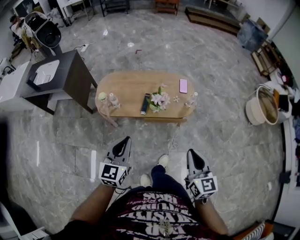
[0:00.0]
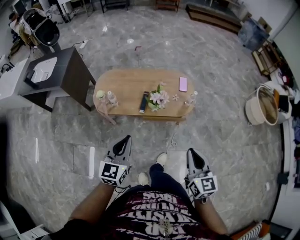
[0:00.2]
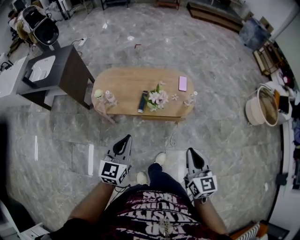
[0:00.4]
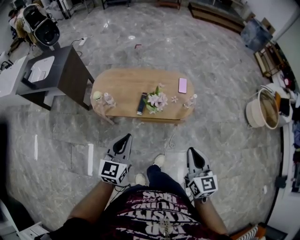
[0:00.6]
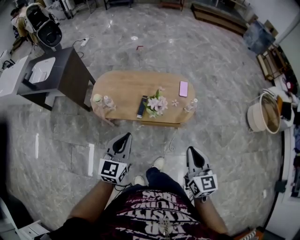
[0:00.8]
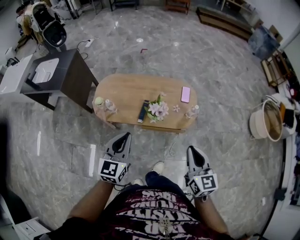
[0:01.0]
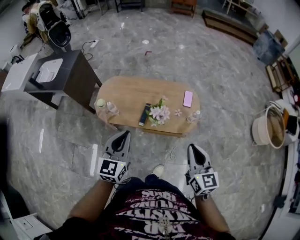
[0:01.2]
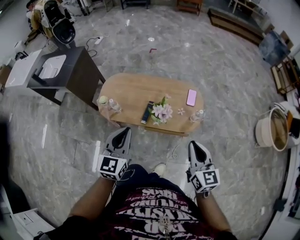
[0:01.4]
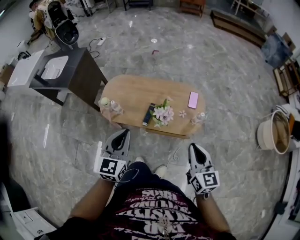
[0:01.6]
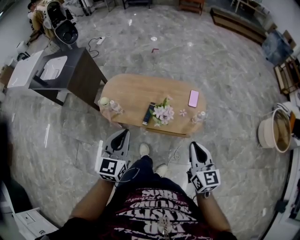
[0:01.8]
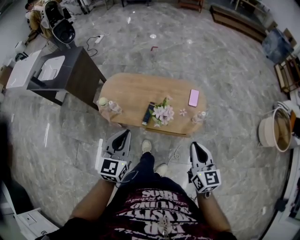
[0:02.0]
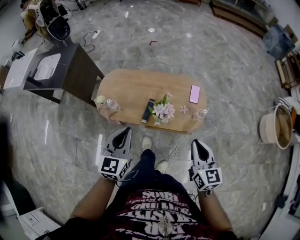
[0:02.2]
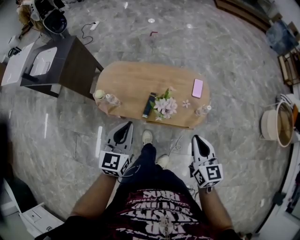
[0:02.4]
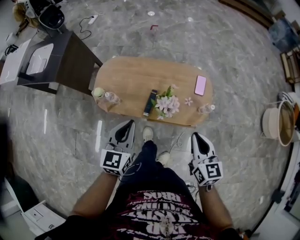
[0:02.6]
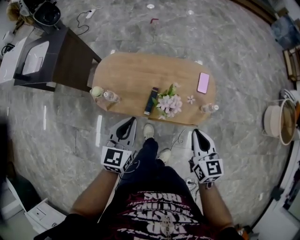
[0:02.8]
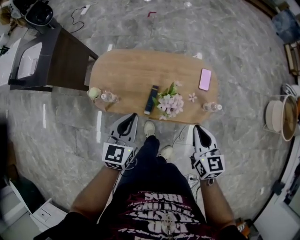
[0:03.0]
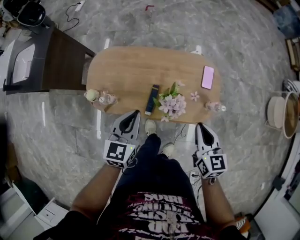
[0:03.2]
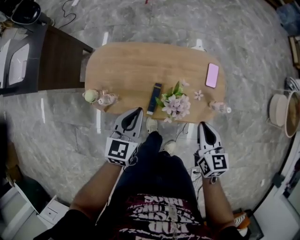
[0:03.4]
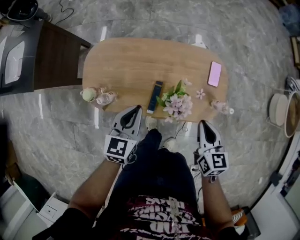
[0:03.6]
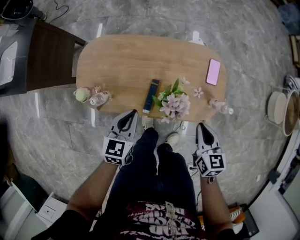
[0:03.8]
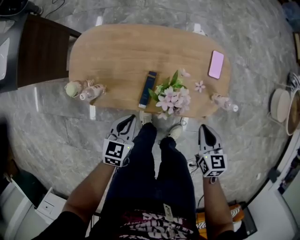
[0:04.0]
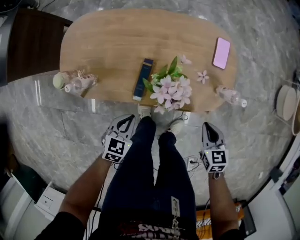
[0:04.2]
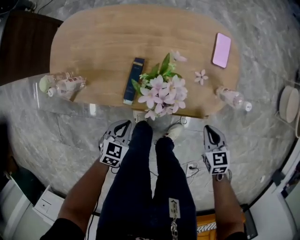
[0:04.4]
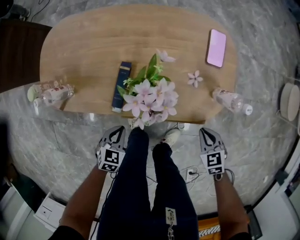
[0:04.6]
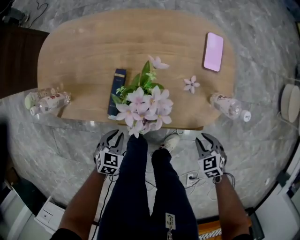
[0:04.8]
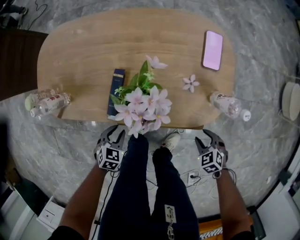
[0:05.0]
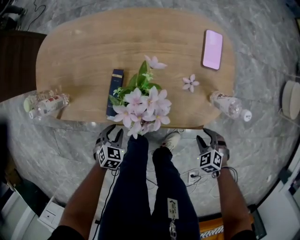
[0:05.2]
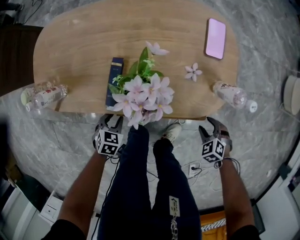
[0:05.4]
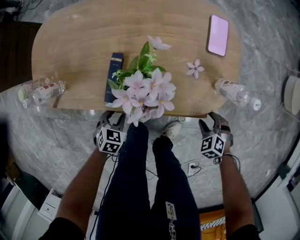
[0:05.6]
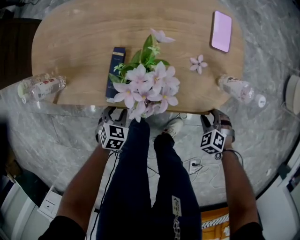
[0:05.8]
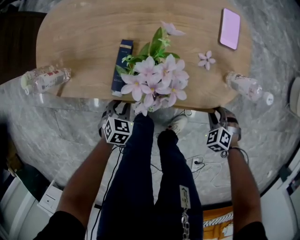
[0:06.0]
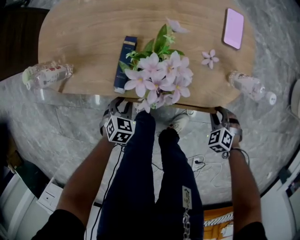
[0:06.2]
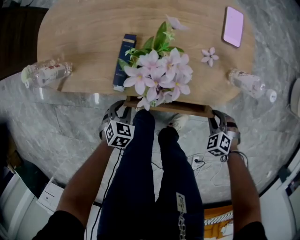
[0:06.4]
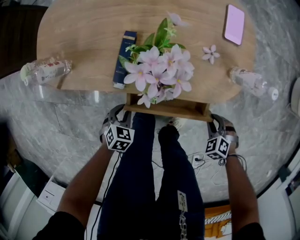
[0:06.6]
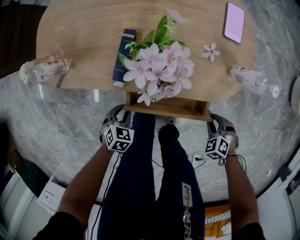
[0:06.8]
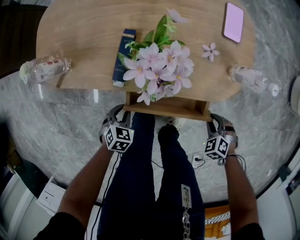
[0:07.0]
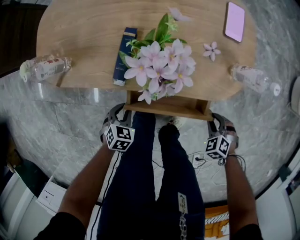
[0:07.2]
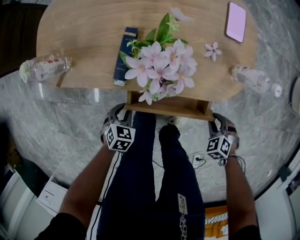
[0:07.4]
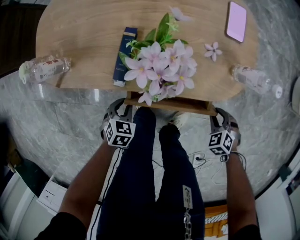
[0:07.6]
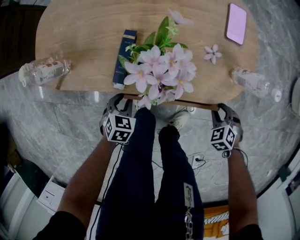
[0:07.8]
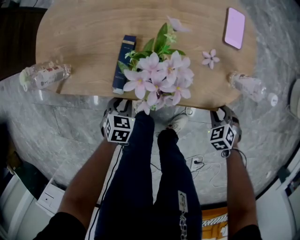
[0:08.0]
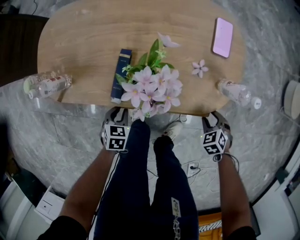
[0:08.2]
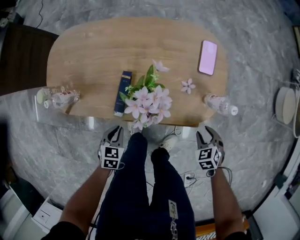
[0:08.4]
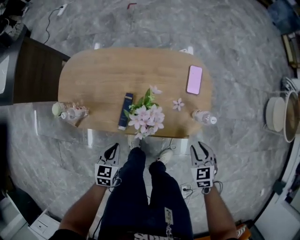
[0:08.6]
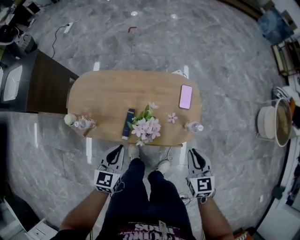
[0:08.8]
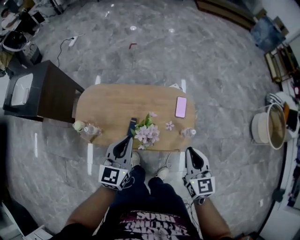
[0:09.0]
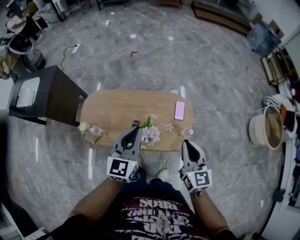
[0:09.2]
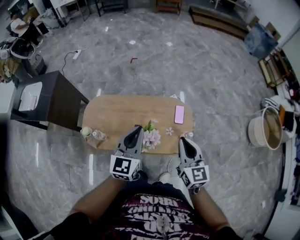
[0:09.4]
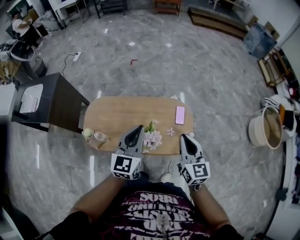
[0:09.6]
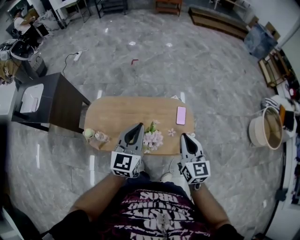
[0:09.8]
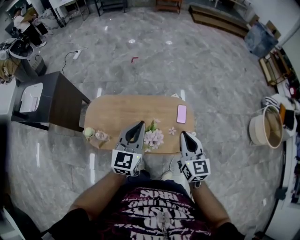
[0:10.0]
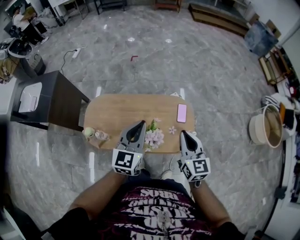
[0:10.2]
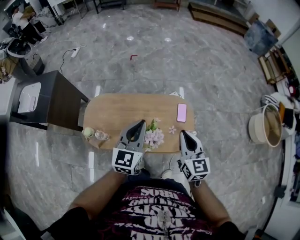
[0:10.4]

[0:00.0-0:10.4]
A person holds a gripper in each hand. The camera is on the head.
0:00.0 to 0:01.4: The two grippers go some 15 cm forward.
0:01.4 to 0:03.0: Both grippers move forward and downward, about 20 cm.
0:03.0 to 0:04.4: Both grippers move downward, approximately 35 cm. The left gripper swivels approximately 30 degrees; the right gripper turns by some 30 degrees.
0:04.4 to 0:06.0: Both grippers move downward, approximately 15 cm. The left gripper opens up; the right gripper rolls counterclockwise, seen from behind, by roughly 40 degrees, and opens up.
0:06.0 to 0:07.4: The right gripper changes place by approximately 5 cm. Meanwhile the left gripper changes place by about 5 cm.
0:07.4 to 0:09.0: The two grippers go some 50 cm upward. The left gripper points its fingers about 50 degrees further upward. Meanwhile the right gripper angles its fingers upward, by about 50 degrees.
0:09.0 to 0:10.4: The right gripper is displaced to the left, upward and forward by some 10 cm; the left gripper is displaced upward and forward by some 10 cm.

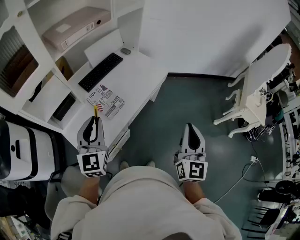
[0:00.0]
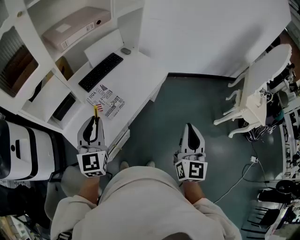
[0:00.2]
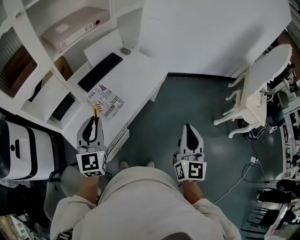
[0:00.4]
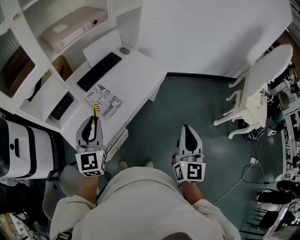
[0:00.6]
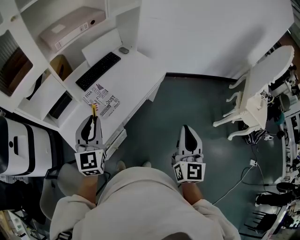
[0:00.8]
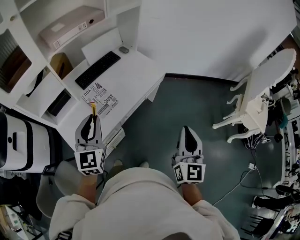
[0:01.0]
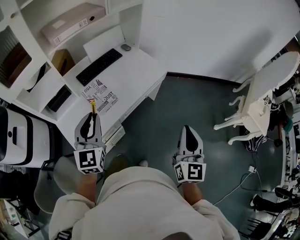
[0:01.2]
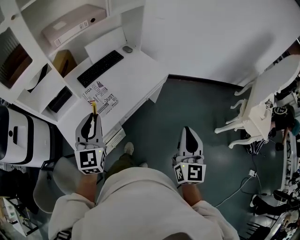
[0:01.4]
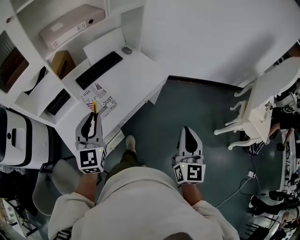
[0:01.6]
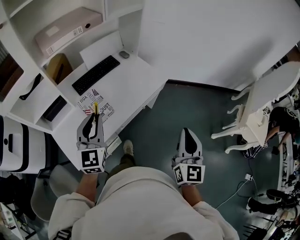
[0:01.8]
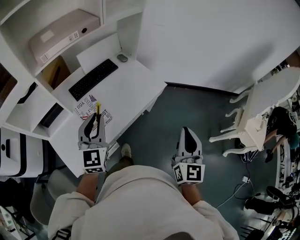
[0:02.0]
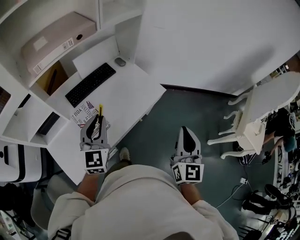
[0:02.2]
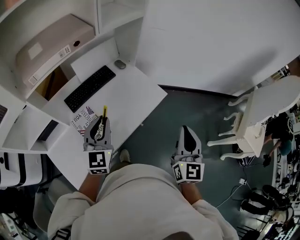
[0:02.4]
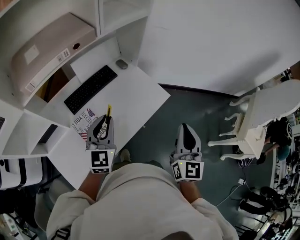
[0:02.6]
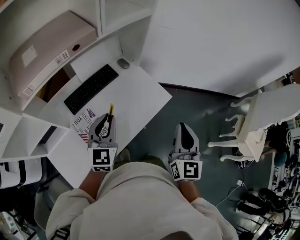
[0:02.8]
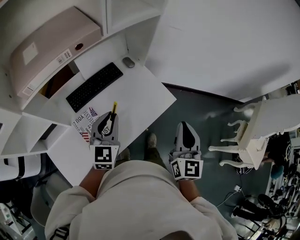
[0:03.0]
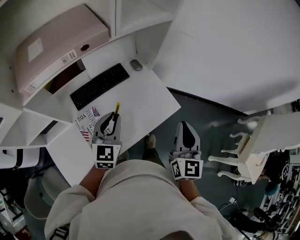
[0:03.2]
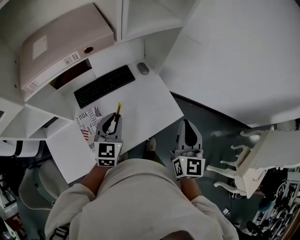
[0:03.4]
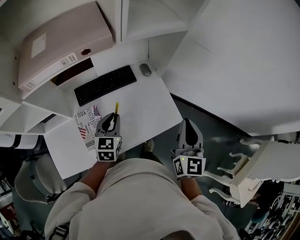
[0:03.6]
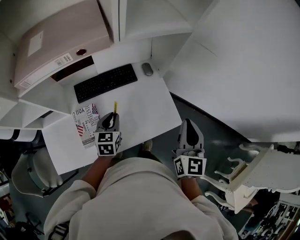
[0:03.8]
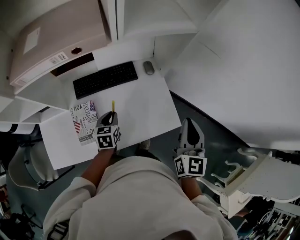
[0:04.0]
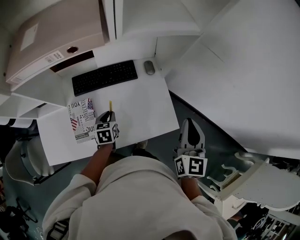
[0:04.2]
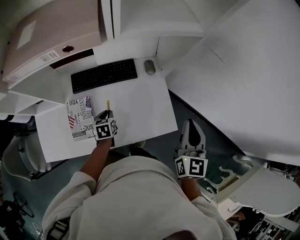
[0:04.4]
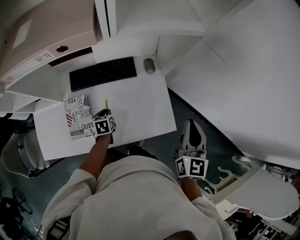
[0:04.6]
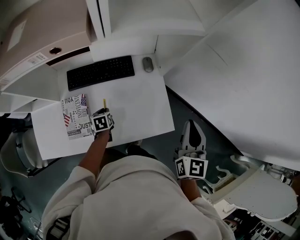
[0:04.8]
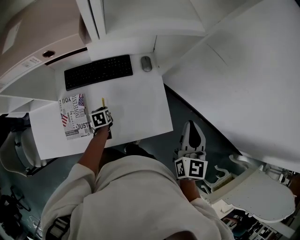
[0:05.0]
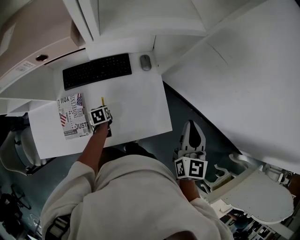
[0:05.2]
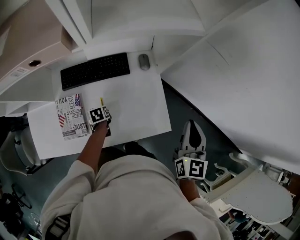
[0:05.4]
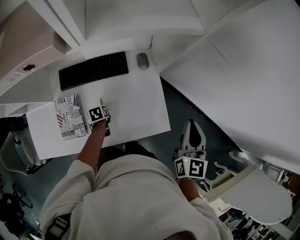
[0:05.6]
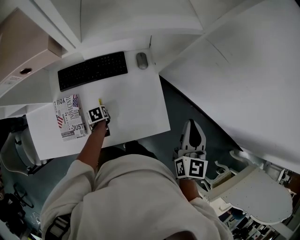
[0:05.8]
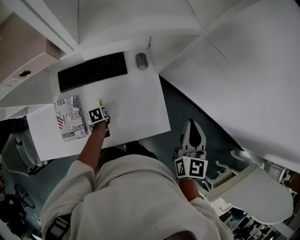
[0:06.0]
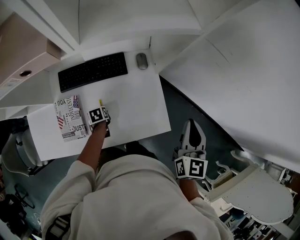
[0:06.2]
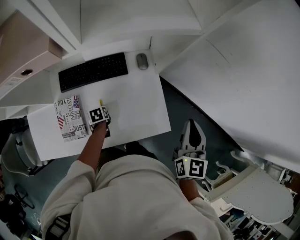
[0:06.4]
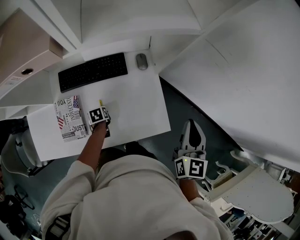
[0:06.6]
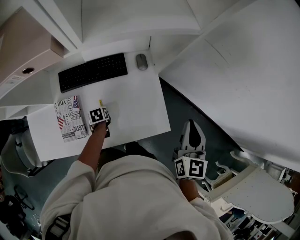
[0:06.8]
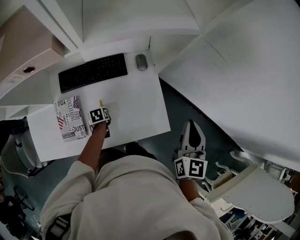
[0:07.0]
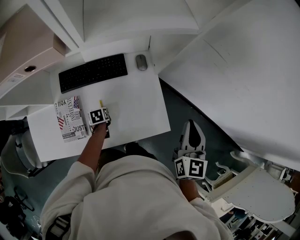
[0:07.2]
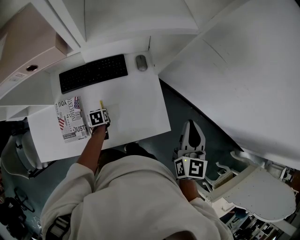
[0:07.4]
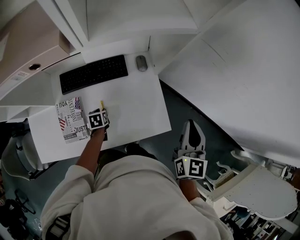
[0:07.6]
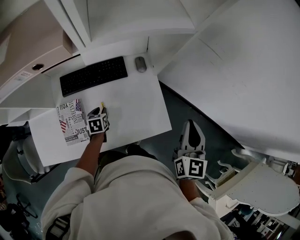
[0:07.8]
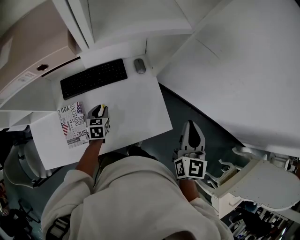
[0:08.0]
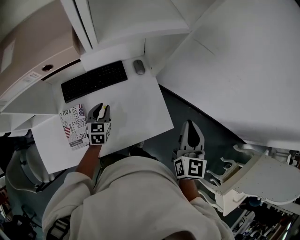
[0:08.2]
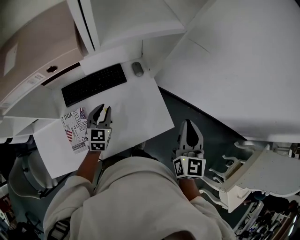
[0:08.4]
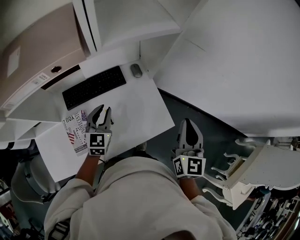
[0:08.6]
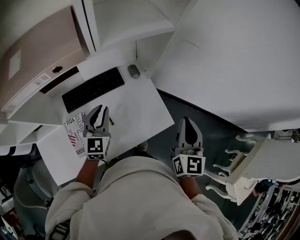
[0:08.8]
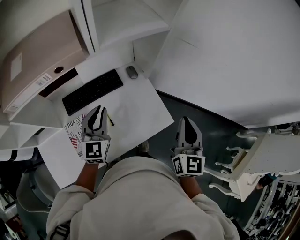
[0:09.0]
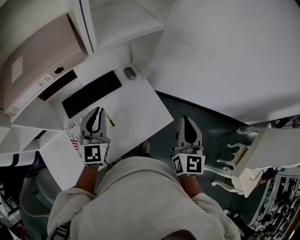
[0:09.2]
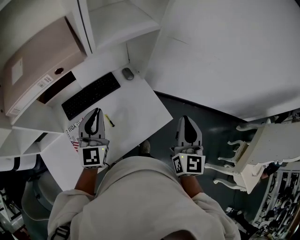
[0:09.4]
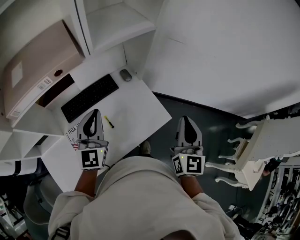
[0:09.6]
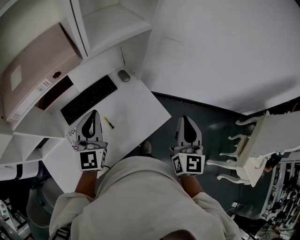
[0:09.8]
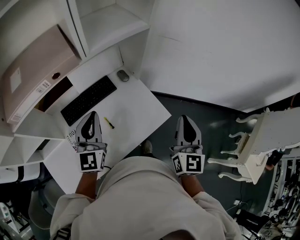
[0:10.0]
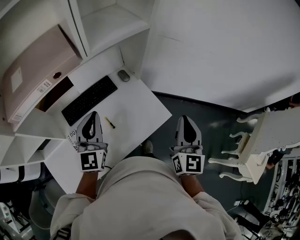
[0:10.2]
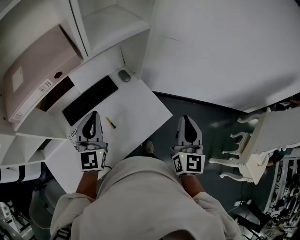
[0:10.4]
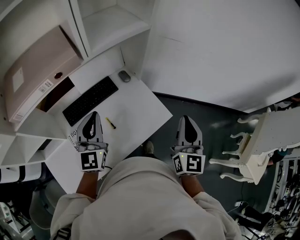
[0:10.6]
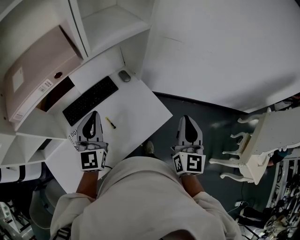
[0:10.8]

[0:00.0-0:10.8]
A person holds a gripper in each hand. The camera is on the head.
0:00.0 to 0:01.6: The left gripper is displaced to the right by roughly 10 cm. Meanwhile the right gripper shifts about 10 cm to the right and forward.
0:01.6 to 0:03.0: Both grippers travel together forward, some 30 cm.
0:03.0 to 0:04.6: The right gripper changes place by about 25 cm, and rotates approximately 30 degrees; the left gripper travels downward by some 30 cm, and points its fingers some 40 degrees further downward.
0:04.6 to 0:06.2: The right gripper shifts about 5 cm to the right and forward, while the left gripper moves downward, some 10 cm.
0:06.2 to 0:07.8: The left gripper shifts some 10 cm upward, and changes its angle by some 20 degrees.
0:07.8 to 0:09.2: The left gripper is displaced upward by about 35 cm, and tilts its fingers roughly 50 degrees upward; the right gripper travels backward and upward by approximately 15 cm.
0:09.2 to 0:10.8: The left gripper ends up approximately 5 cm from where it was.

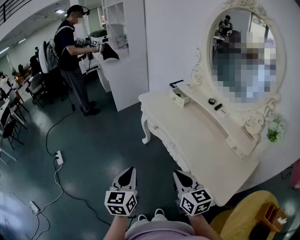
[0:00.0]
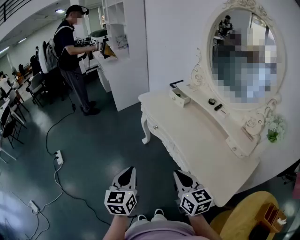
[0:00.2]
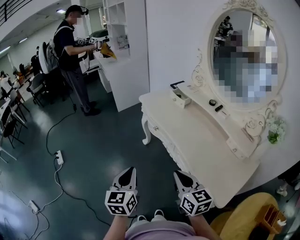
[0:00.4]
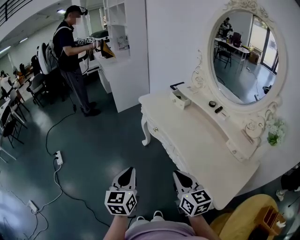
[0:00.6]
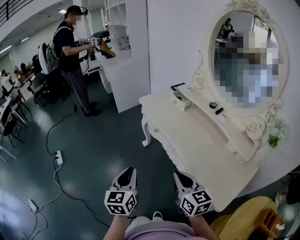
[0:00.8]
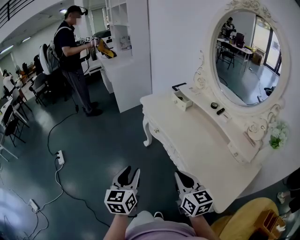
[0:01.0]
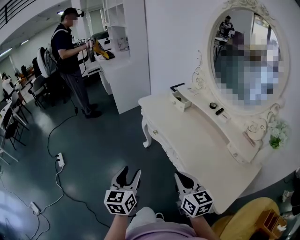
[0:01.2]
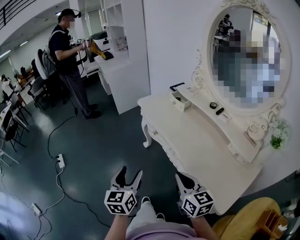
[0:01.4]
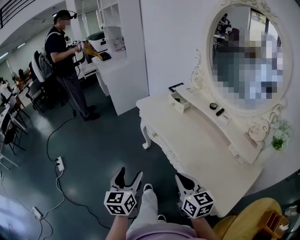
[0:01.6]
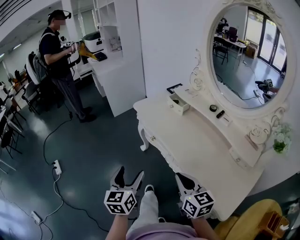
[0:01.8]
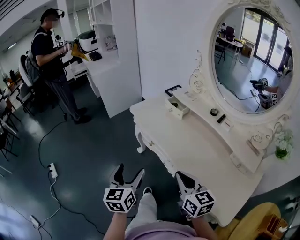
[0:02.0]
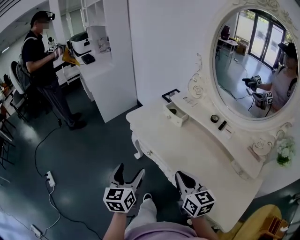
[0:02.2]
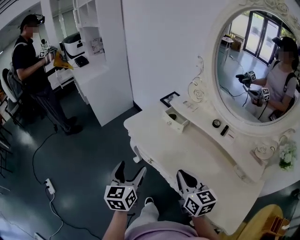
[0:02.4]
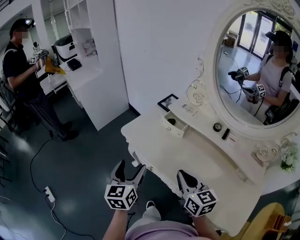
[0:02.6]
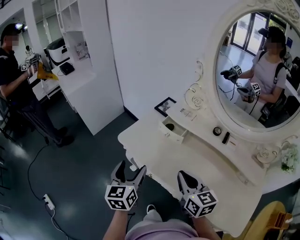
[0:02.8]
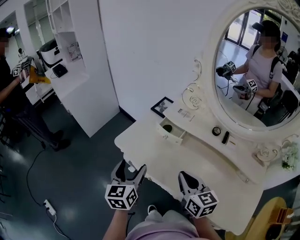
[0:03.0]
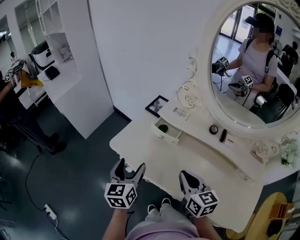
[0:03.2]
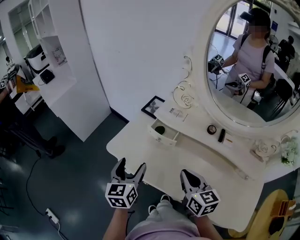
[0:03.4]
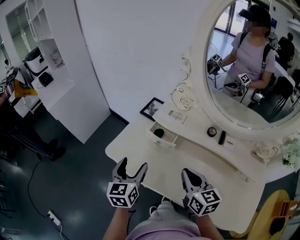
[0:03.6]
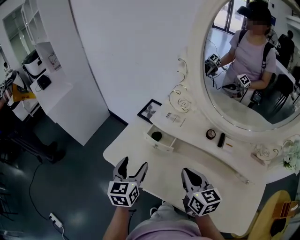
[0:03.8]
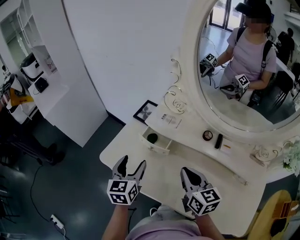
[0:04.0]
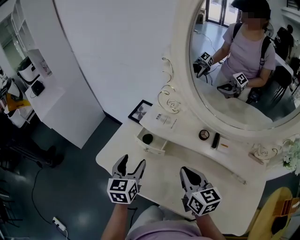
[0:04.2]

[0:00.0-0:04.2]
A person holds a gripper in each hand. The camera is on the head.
0:00.0 to 0:01.4: The left gripper opens up.
0:01.4 to 0:02.8: Both grippers move forward, some 35 cm.
0:02.8 to 0:04.2: The two grippers go some 15 cm forward and to the right.
